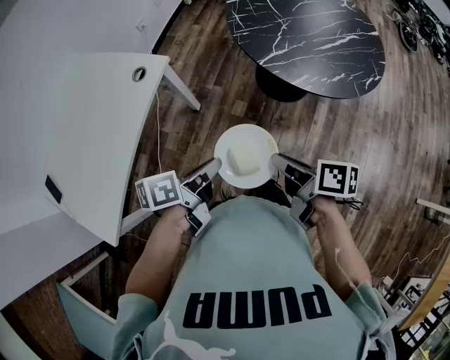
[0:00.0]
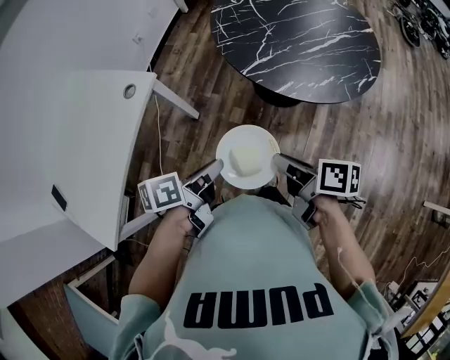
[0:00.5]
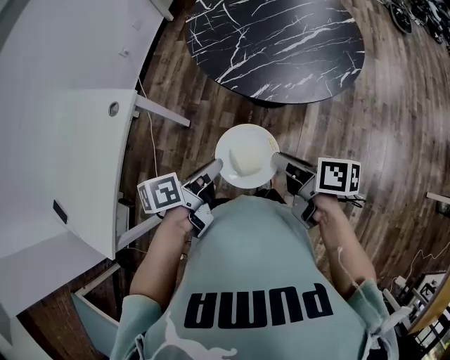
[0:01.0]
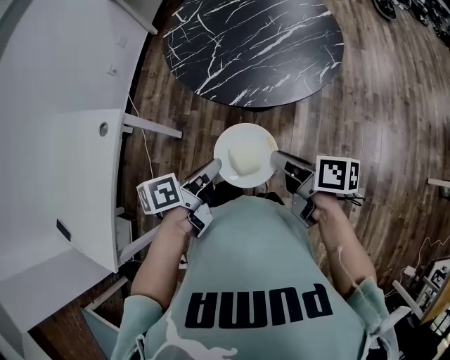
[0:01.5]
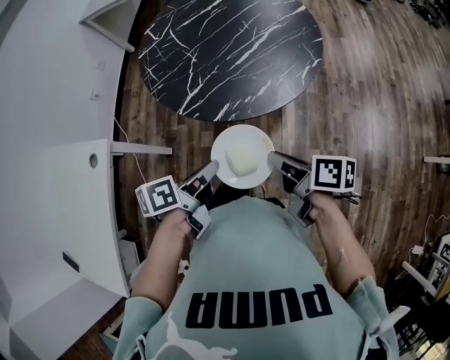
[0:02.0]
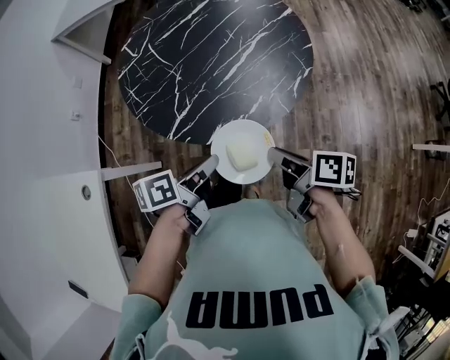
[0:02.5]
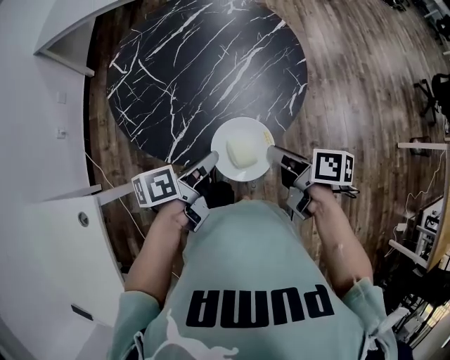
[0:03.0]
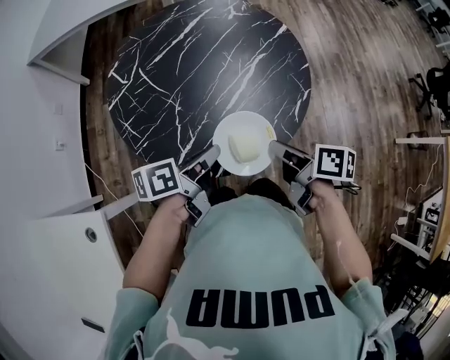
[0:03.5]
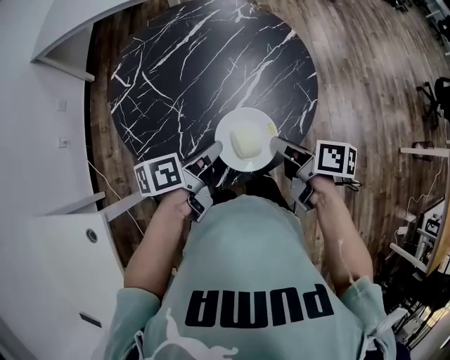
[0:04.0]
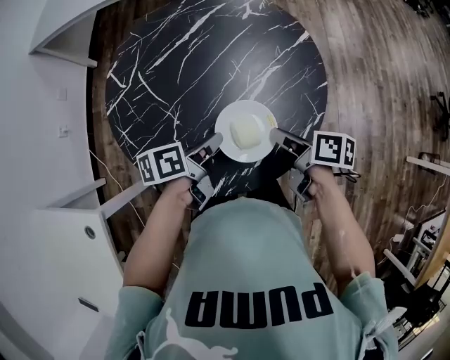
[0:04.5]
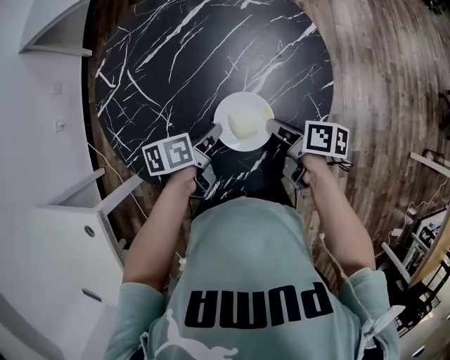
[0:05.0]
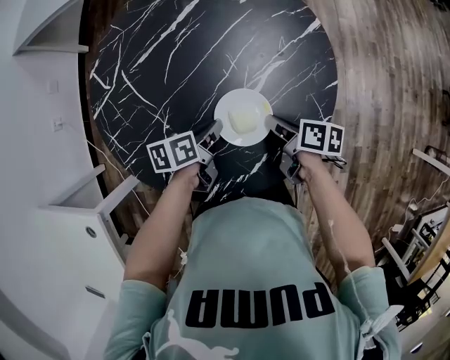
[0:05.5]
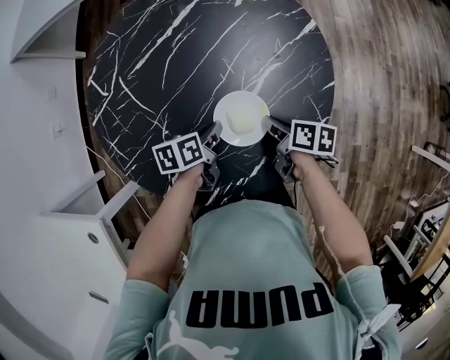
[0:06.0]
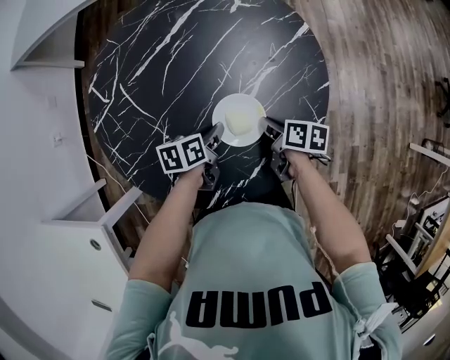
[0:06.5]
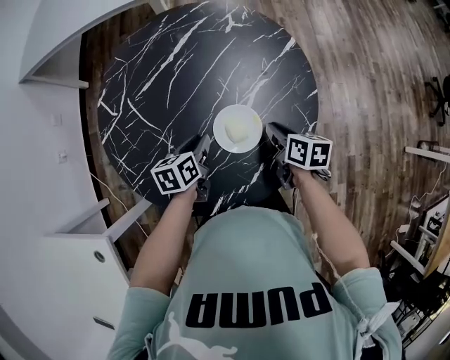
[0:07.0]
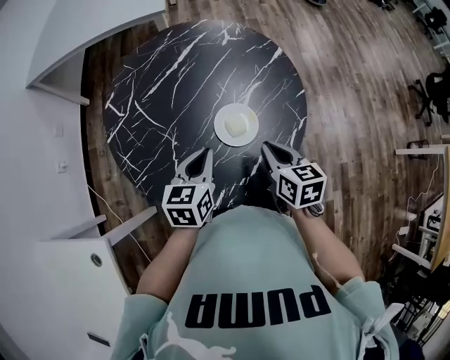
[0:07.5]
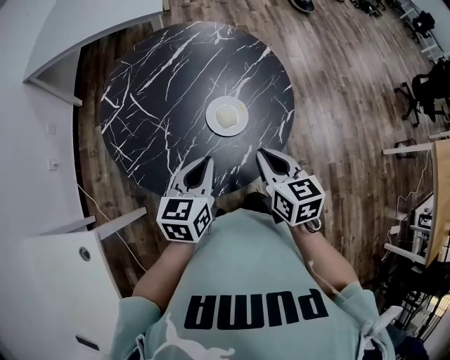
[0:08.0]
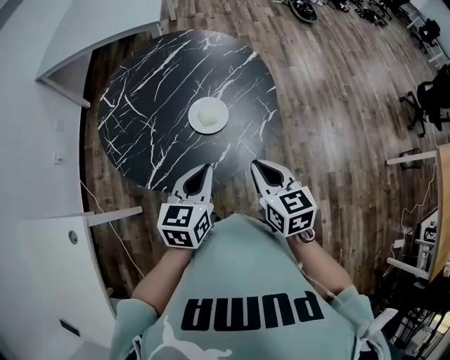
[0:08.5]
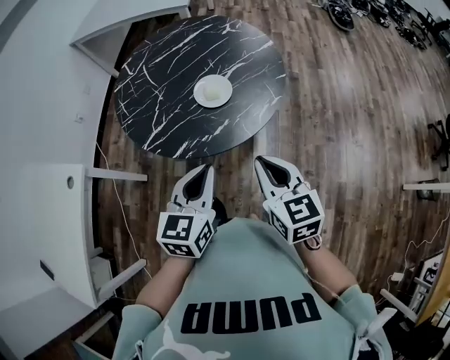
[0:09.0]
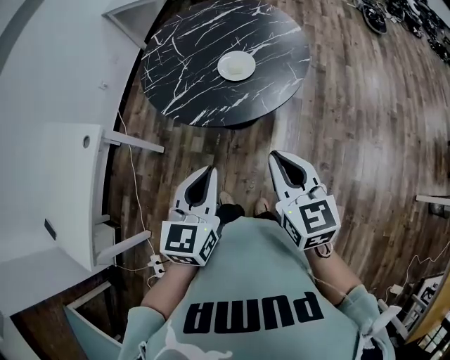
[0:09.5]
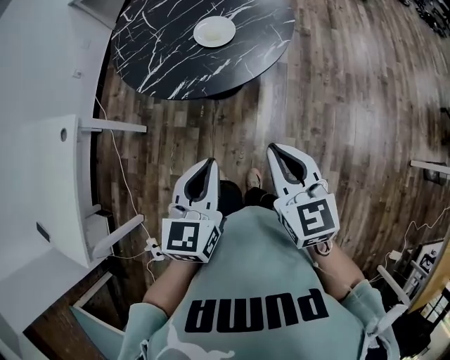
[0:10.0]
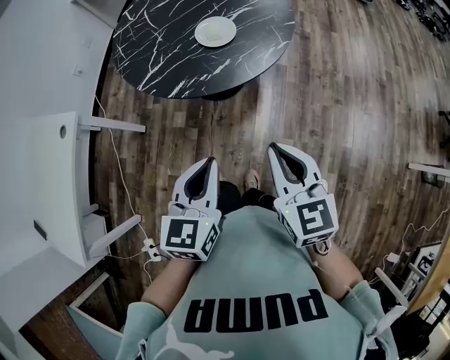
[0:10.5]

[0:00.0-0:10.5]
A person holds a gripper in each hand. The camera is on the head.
0:00.0 to 0:02.0: Both grippers travel together to the right and forward, approximately 25 cm.
0:02.0 to 0:04.0: Both grippers travel together forward, roughly 25 cm.
0:04.0 to 0:06.5: Both grippers travel together downward and forward, some 20 cm. The left gripper changes its angle by about 20 degrees.
0:06.5 to 0:08.5: The left gripper shifts approximately 30 cm upward and backward, and changes its angle by some 40 degrees, while the right gripper goes some 35 cm backward and upward, and rolls counterclockwise, seen from behind, by some 40 degrees.
0:08.5 to 0:10.5: The two grippers go some 25 cm backward.

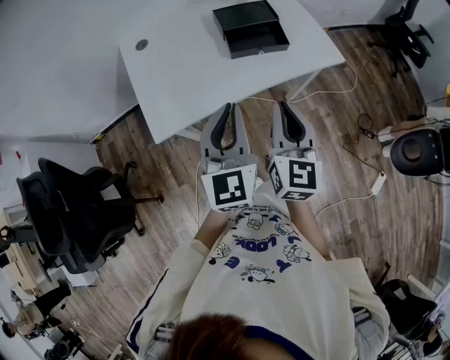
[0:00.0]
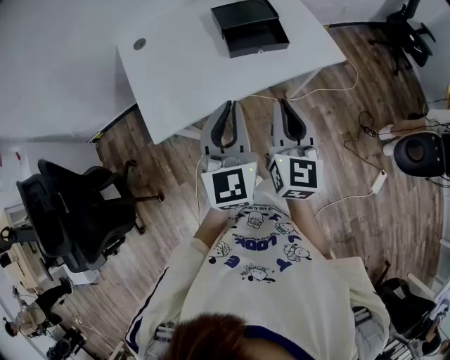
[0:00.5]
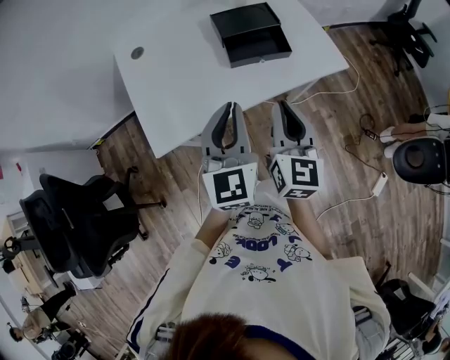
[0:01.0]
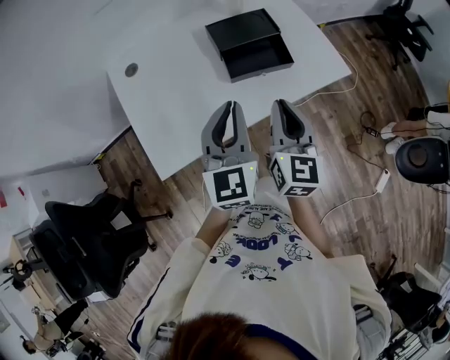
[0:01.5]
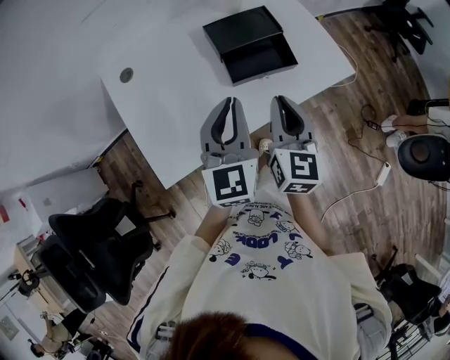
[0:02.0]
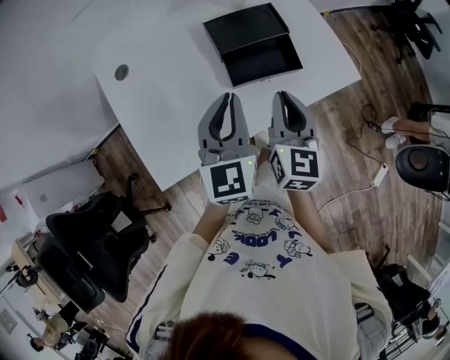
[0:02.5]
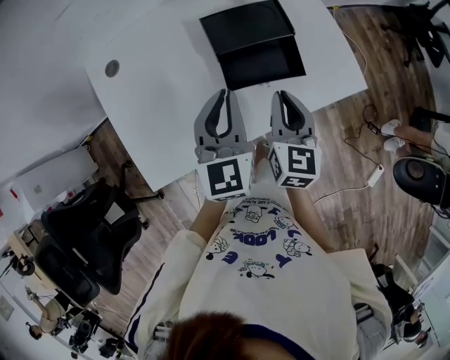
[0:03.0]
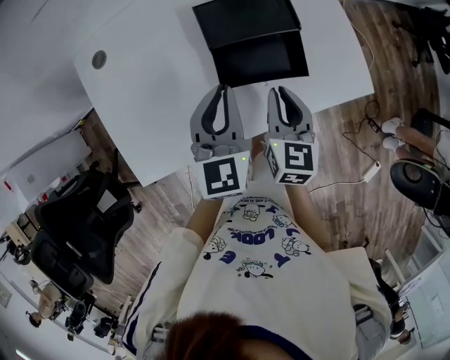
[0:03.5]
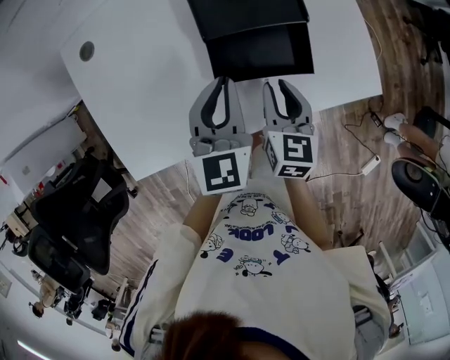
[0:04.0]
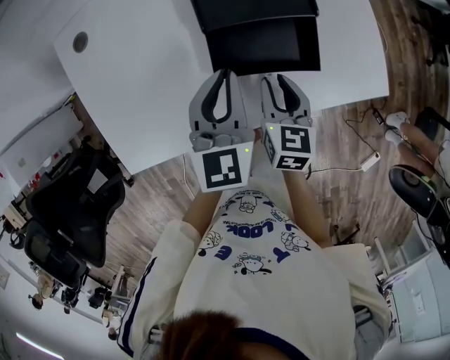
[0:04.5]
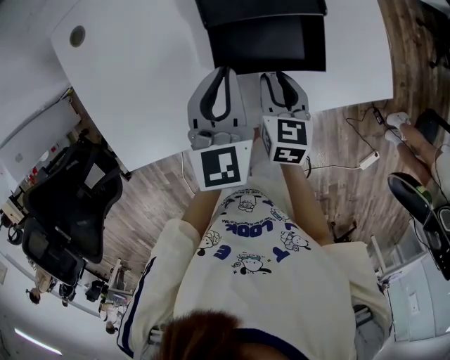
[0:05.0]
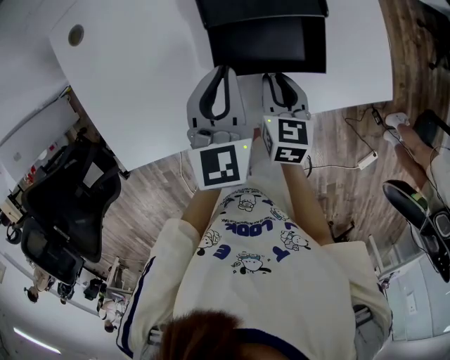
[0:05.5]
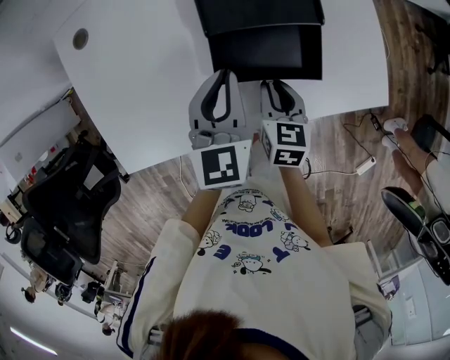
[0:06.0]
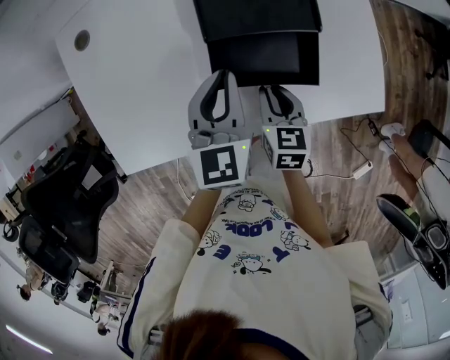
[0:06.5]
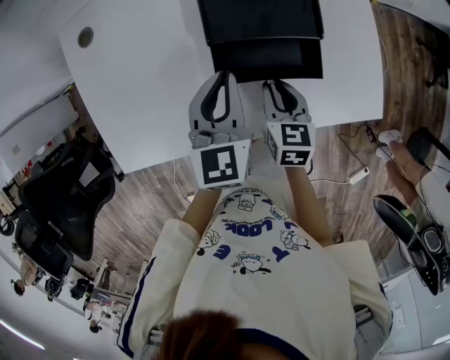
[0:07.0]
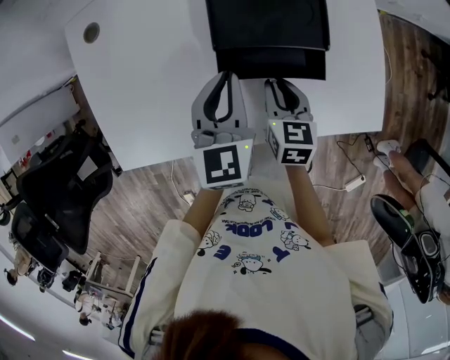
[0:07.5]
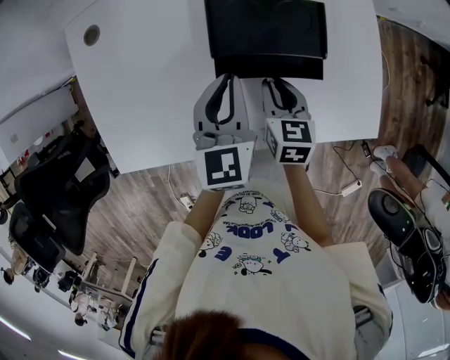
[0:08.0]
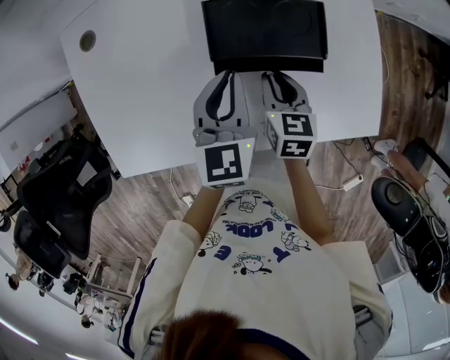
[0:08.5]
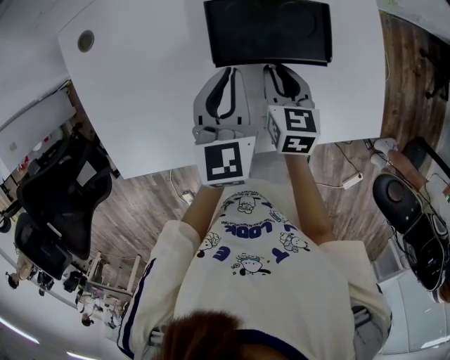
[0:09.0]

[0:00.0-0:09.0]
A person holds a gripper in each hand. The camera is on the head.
0:00.0 to 0:02.0: Both grippers move forward, roughly 15 cm.
0:02.0 to 0:04.5: The two grippers go about 20 cm downward and forward. The right gripper turns by roughly 30 degrees, and opens its fingers.
0:04.5 to 0:07.0: The grippers make only small movements.
0:07.0 to 0:09.0: The right gripper is displaced forward by about 10 cm.

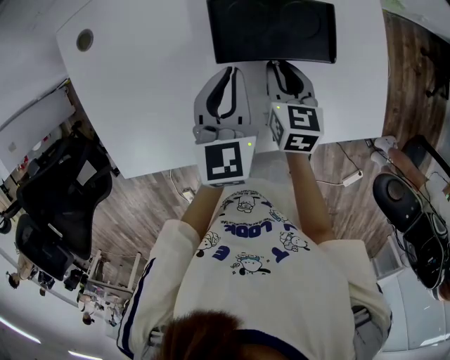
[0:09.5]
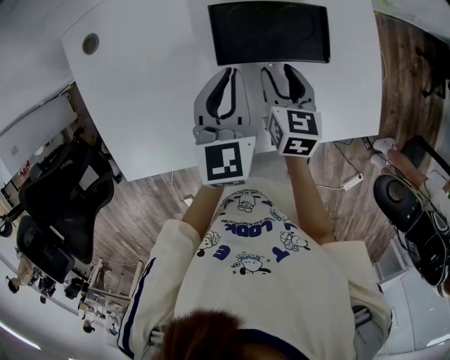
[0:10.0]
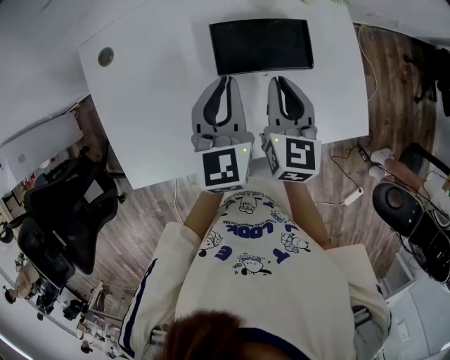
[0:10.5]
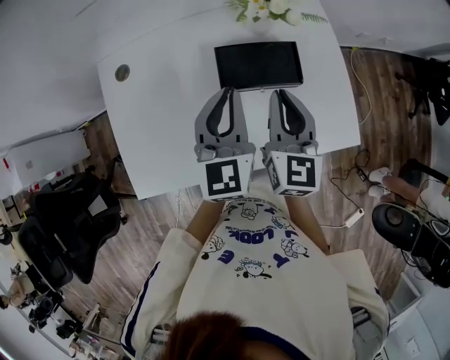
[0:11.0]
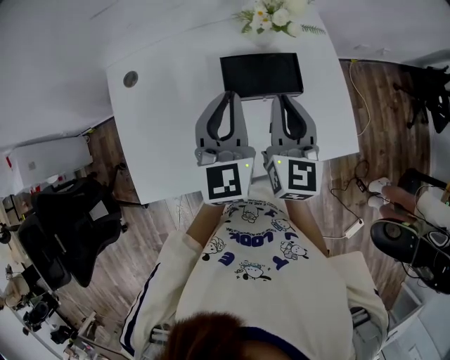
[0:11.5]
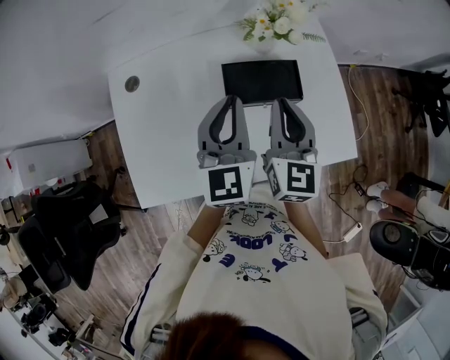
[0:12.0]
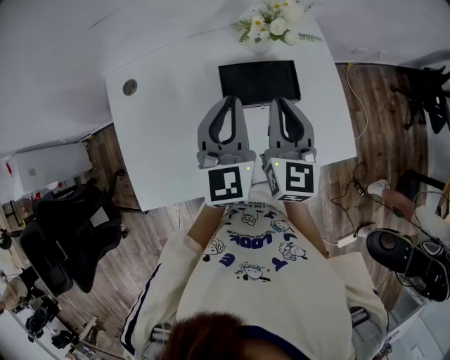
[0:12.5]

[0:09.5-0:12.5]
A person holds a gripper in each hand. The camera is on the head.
0:09.5 to 0:11.0: Both grippers travel together upward, about 20 cm. The right gripper rotates some 30 degrees, and opens, then closes again.
0:11.0 to 0:12.5: The grippers make only small movements.

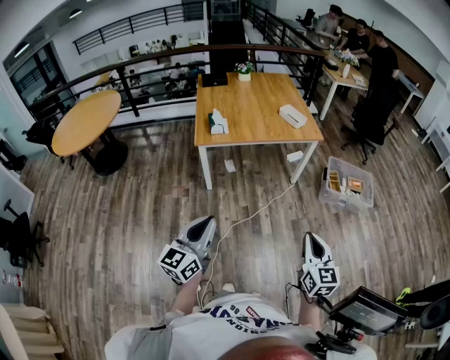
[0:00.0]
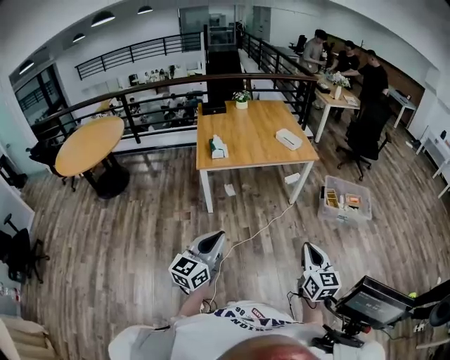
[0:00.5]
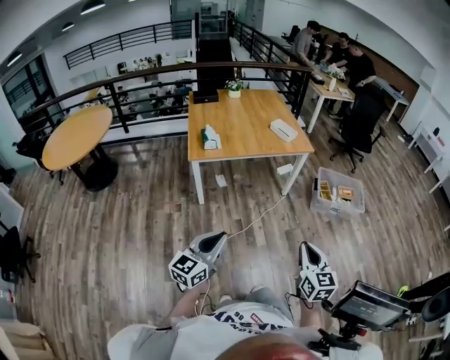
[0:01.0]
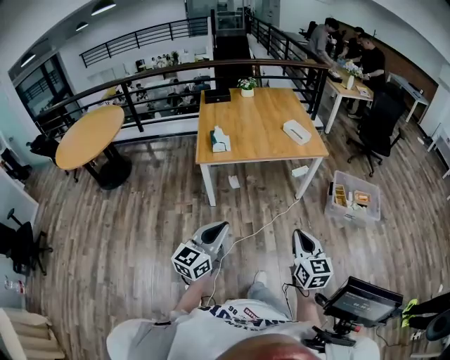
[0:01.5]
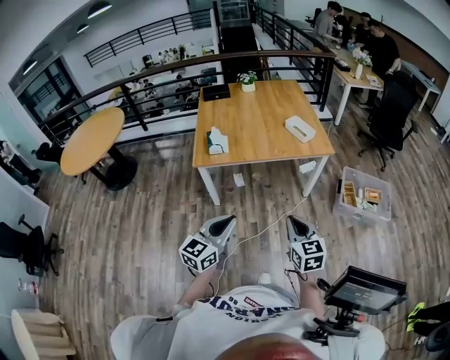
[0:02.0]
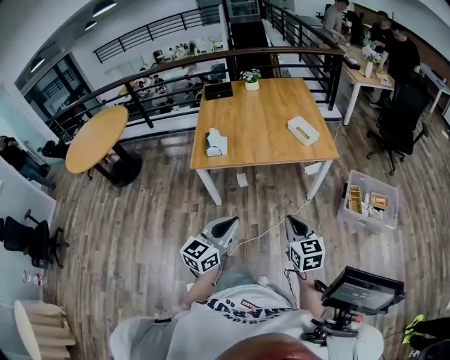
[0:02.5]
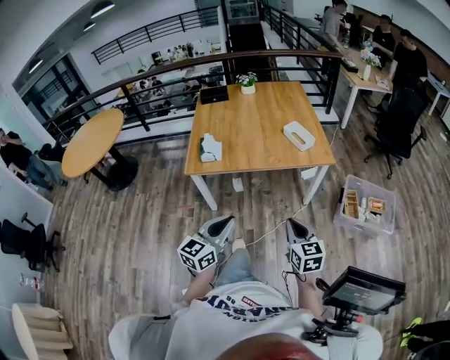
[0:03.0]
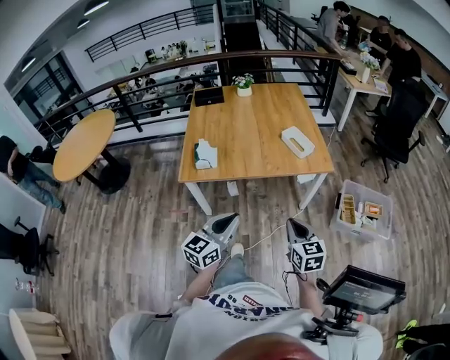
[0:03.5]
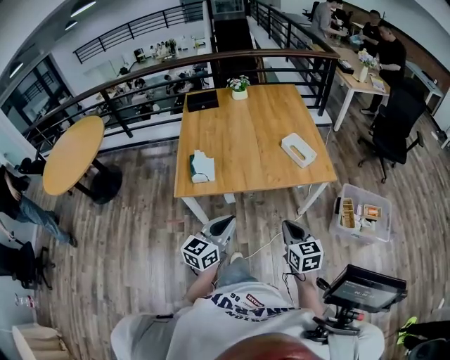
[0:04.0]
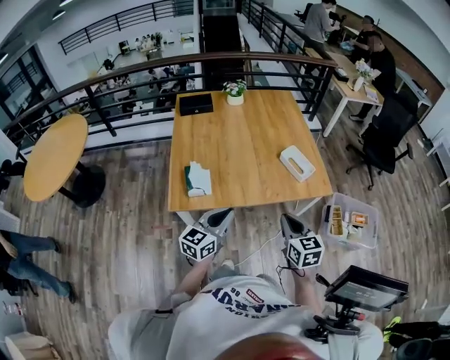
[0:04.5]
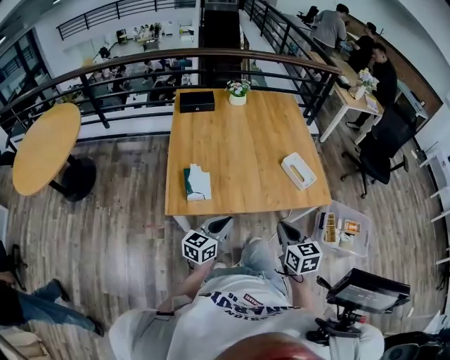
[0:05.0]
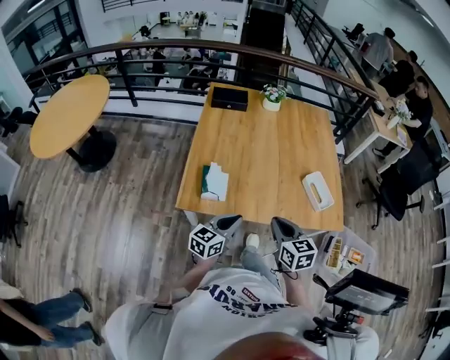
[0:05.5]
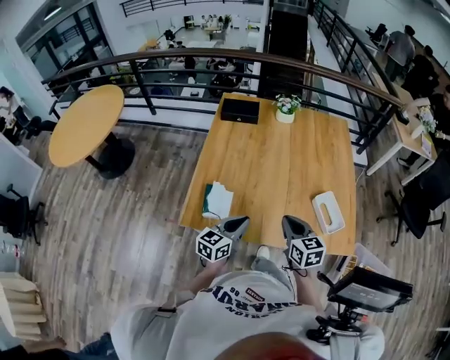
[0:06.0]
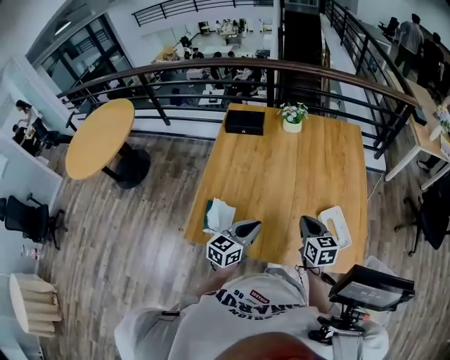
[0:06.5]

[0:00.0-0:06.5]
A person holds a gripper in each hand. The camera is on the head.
0:00.0 to 0:02.0: The right gripper shifts roughly 20 cm forward; the left gripper shifts roughly 20 cm forward and to the right.
0:02.0 to 0:04.5: The grippers both shift forward by some 40 cm.
0:04.5 to 0:06.5: Both grippers travel together forward, about 35 cm.
